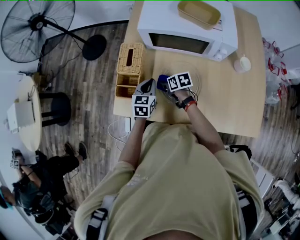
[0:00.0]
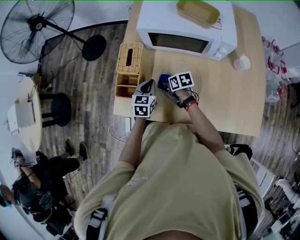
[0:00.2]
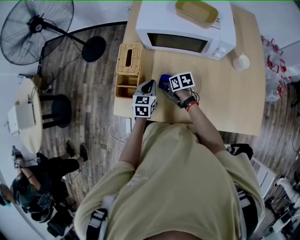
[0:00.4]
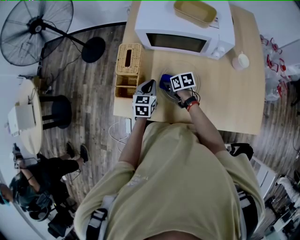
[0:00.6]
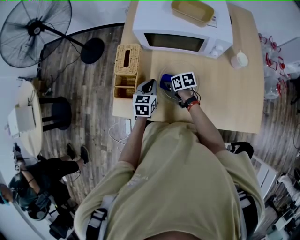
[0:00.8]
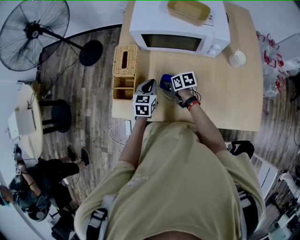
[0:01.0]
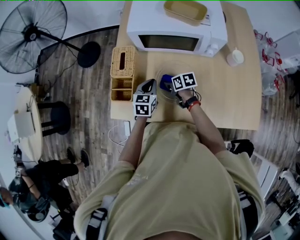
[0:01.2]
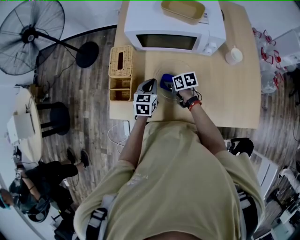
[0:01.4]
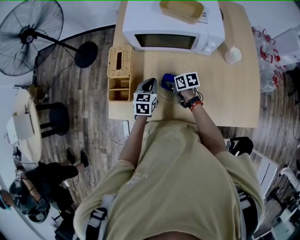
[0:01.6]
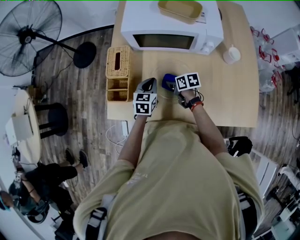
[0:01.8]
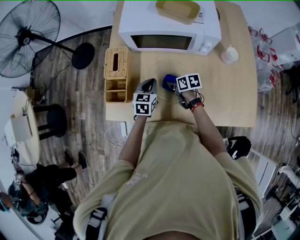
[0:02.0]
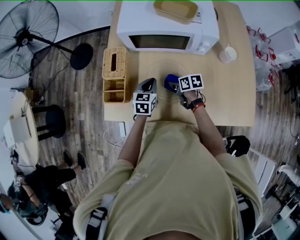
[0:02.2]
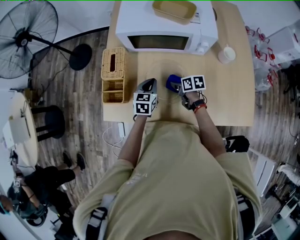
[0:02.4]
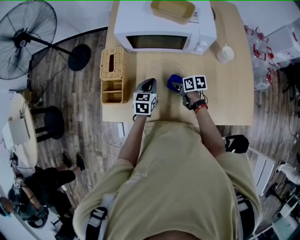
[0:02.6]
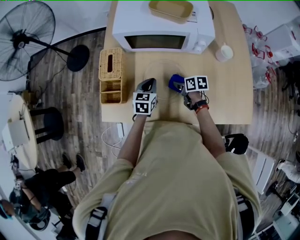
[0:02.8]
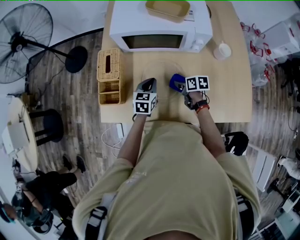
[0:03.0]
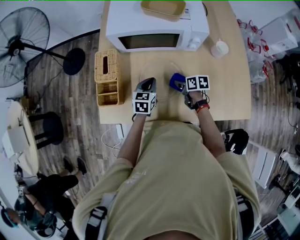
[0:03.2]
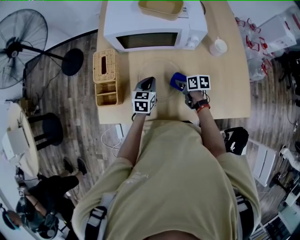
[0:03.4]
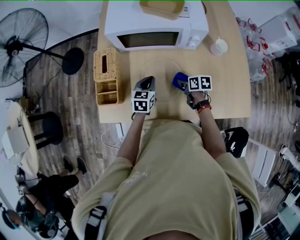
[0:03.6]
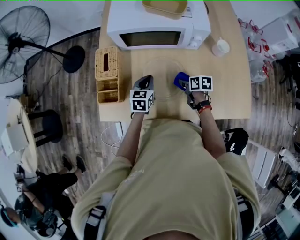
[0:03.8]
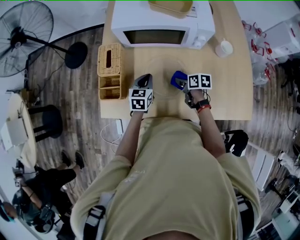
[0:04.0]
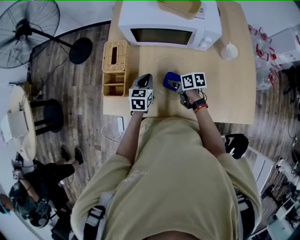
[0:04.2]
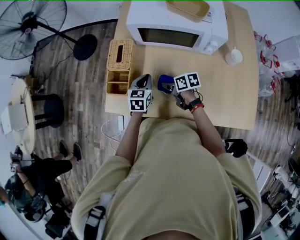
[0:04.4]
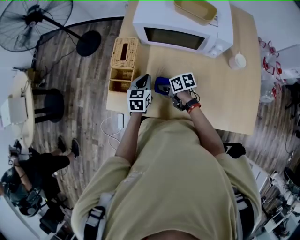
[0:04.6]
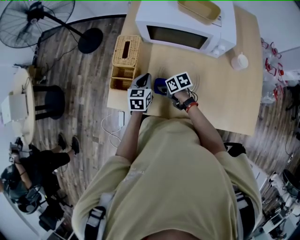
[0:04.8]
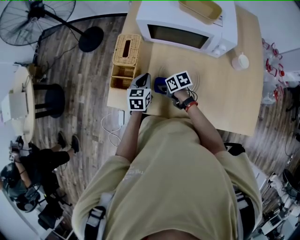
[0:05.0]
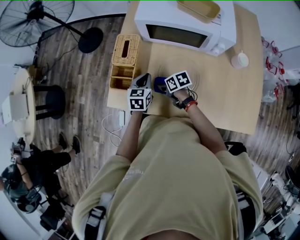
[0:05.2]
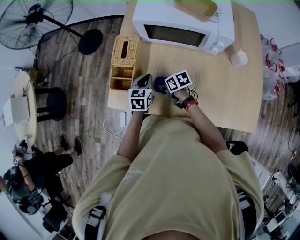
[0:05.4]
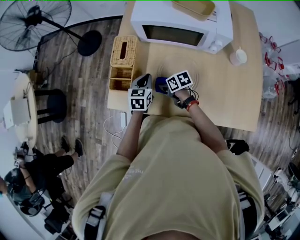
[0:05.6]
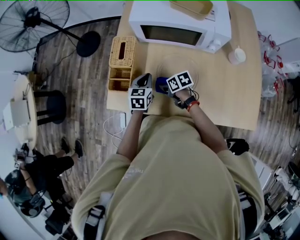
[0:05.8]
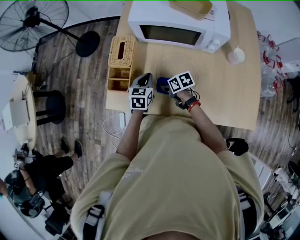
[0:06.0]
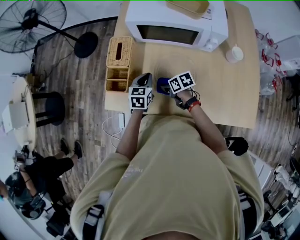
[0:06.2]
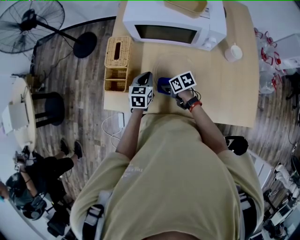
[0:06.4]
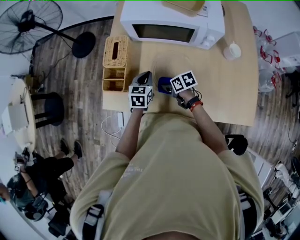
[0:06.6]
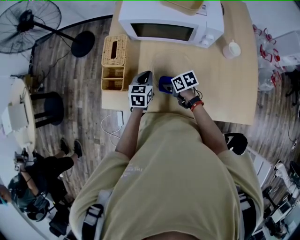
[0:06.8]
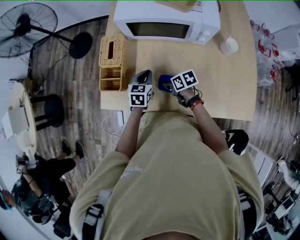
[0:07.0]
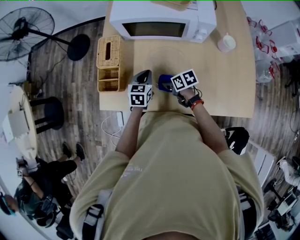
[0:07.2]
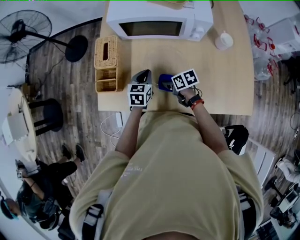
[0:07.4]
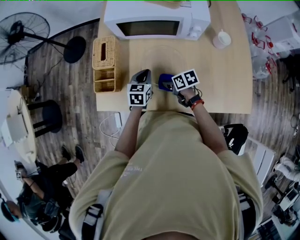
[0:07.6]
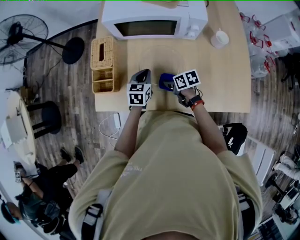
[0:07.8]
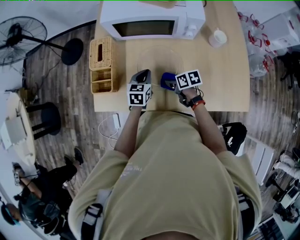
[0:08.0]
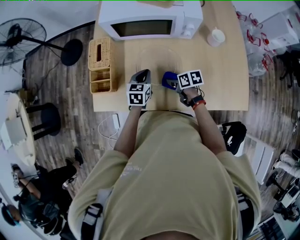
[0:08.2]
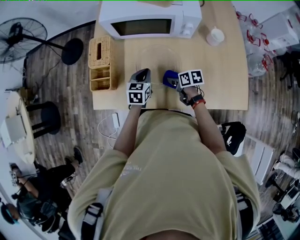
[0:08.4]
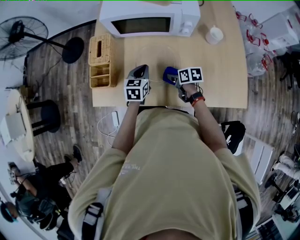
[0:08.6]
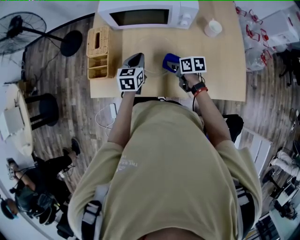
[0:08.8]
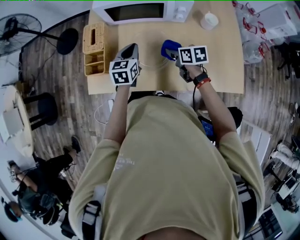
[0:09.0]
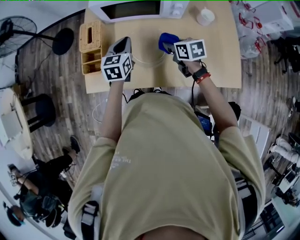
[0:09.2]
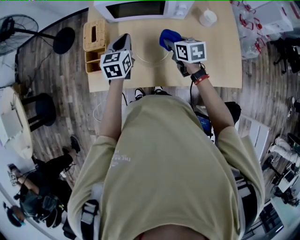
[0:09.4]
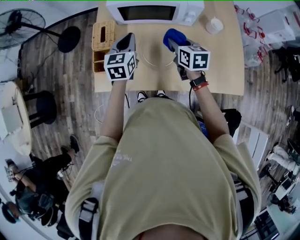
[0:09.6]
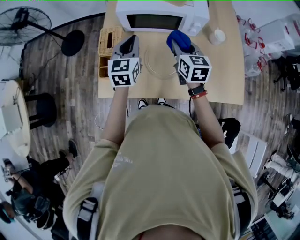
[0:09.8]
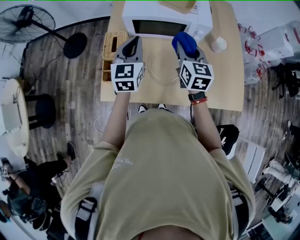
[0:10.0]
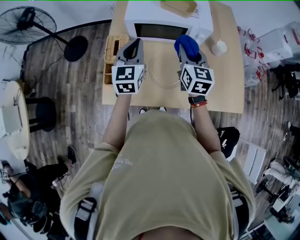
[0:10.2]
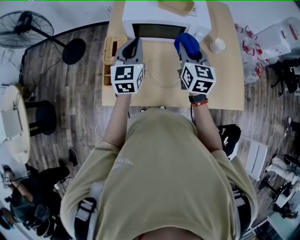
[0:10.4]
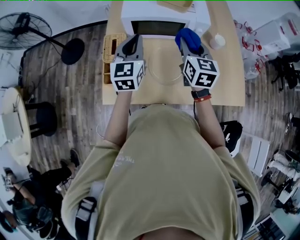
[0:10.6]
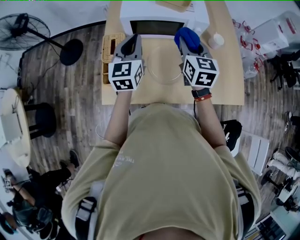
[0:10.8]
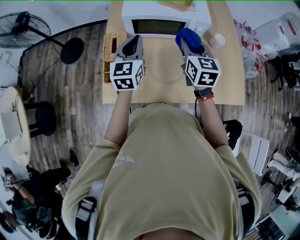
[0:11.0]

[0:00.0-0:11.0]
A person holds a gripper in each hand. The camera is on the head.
0:00.0 to 0:01.6: The grippers both shift to the right by some 5 cm.
0:01.6 to 0:03.2: The left gripper heads to the right, covering about 5 cm. The right gripper heads to the right, covering some 10 cm.
0:03.2 to 0:04.8: The left gripper changes place by roughly 10 cm; the right gripper changes place by about 20 cm, and changes its angle by approximately 30 degrees.
0:04.8 to 0:06.2: There are only small adjustments of the grippers.
0:06.2 to 0:07.8: The right gripper heads to the right and backward, covering some 10 cm, while the left gripper travels to the right by approximately 5 cm.
0:07.8 to 0:09.4: The two grippers go approximately 15 cm upward. The right gripper swivels approximately 30 degrees.
0:09.4 to 0:11.0: The right gripper moves upward, about 15 cm, and turns by some 30 degrees. Meanwhile the left gripper shifts some 15 cm upward and to the left.

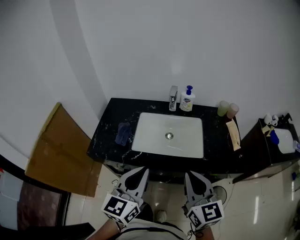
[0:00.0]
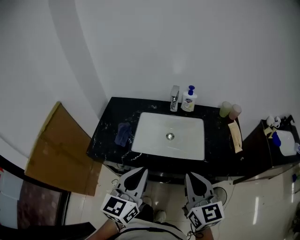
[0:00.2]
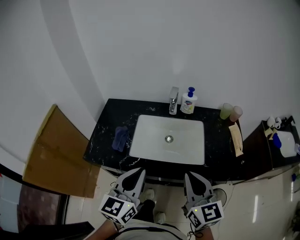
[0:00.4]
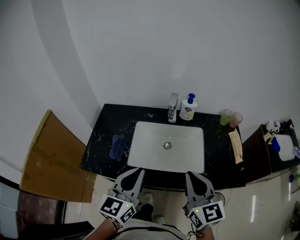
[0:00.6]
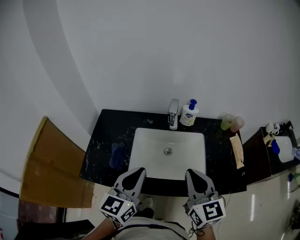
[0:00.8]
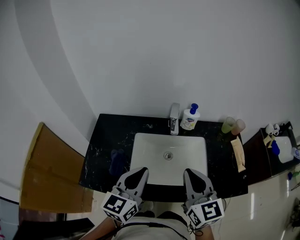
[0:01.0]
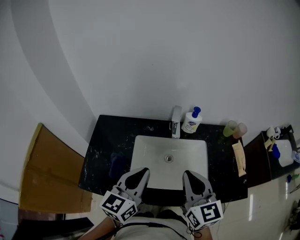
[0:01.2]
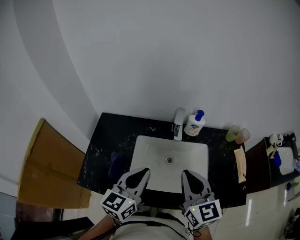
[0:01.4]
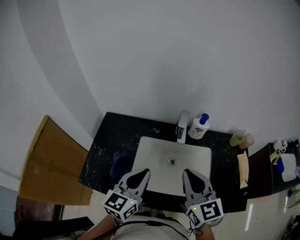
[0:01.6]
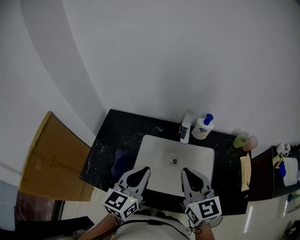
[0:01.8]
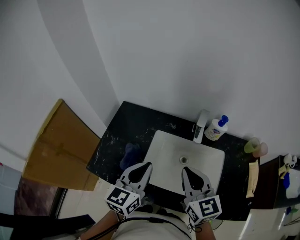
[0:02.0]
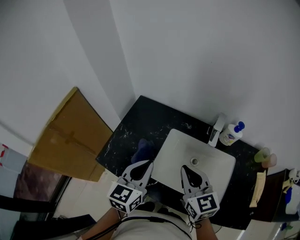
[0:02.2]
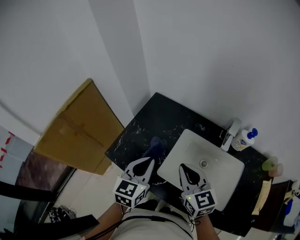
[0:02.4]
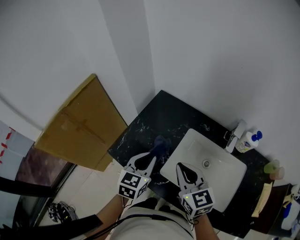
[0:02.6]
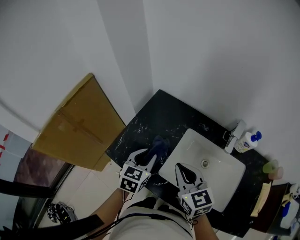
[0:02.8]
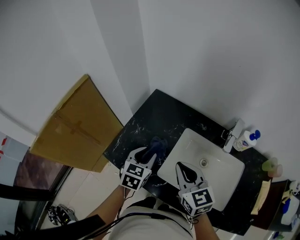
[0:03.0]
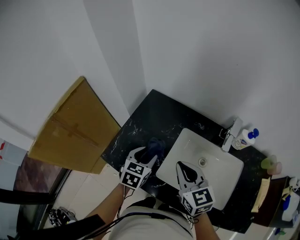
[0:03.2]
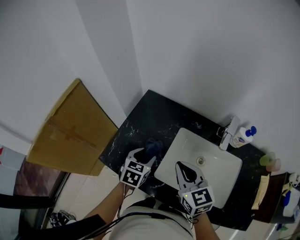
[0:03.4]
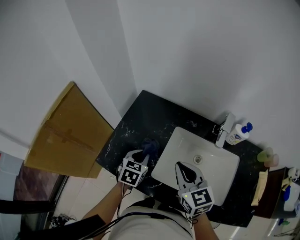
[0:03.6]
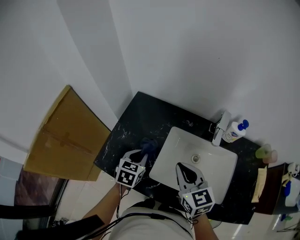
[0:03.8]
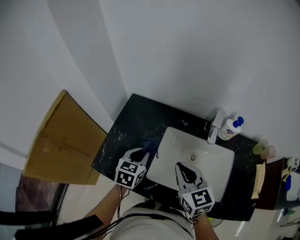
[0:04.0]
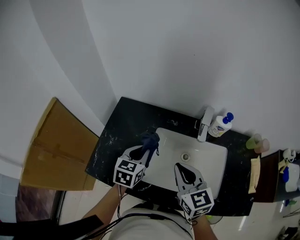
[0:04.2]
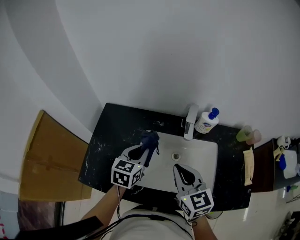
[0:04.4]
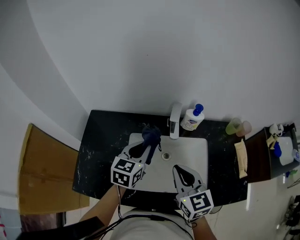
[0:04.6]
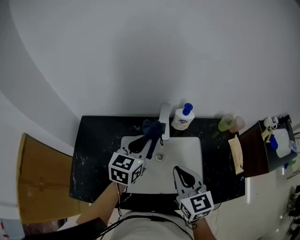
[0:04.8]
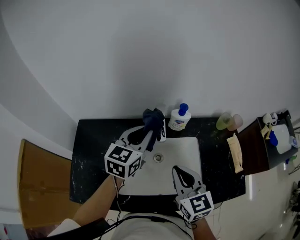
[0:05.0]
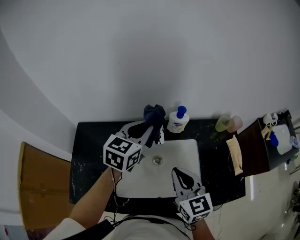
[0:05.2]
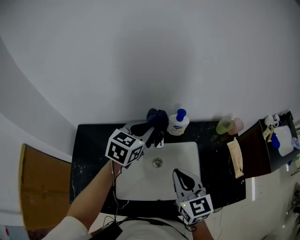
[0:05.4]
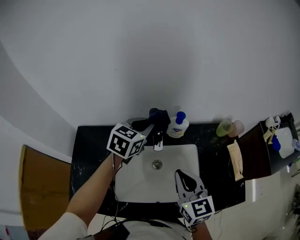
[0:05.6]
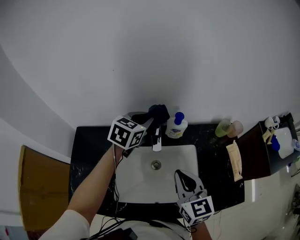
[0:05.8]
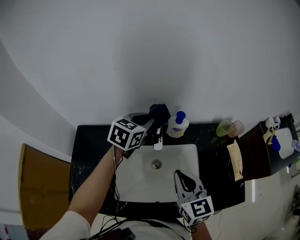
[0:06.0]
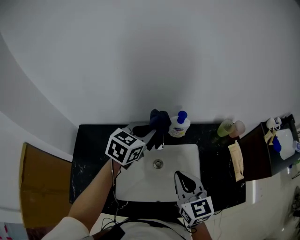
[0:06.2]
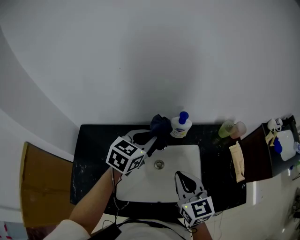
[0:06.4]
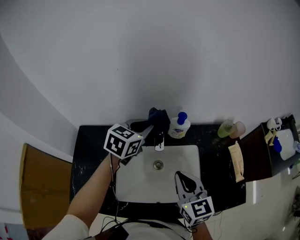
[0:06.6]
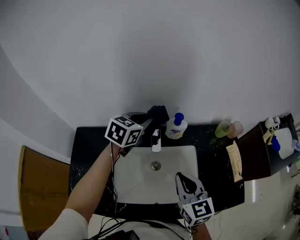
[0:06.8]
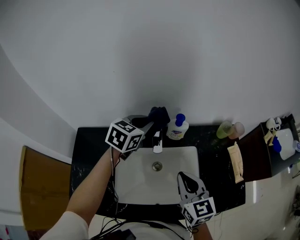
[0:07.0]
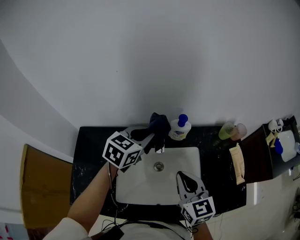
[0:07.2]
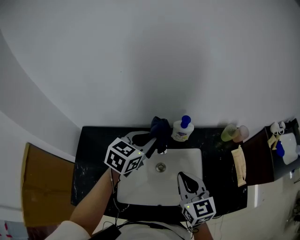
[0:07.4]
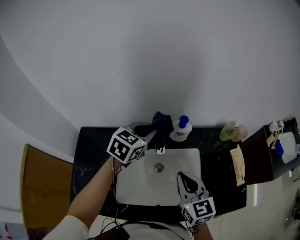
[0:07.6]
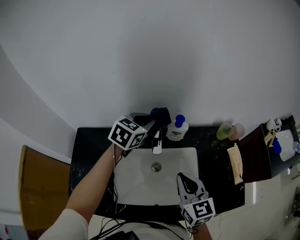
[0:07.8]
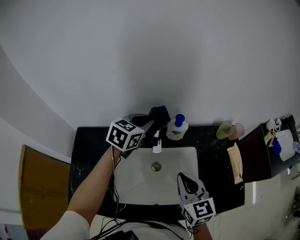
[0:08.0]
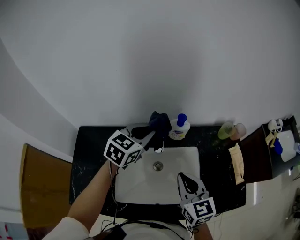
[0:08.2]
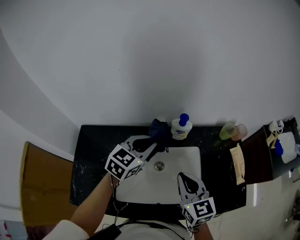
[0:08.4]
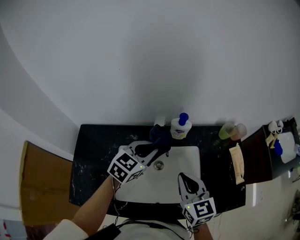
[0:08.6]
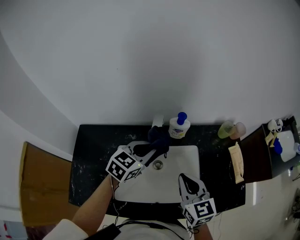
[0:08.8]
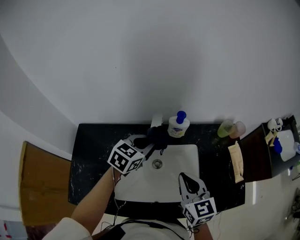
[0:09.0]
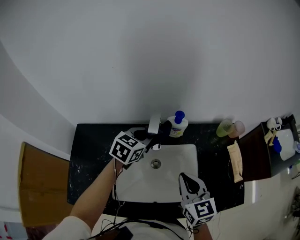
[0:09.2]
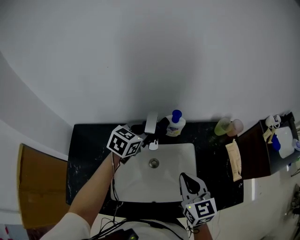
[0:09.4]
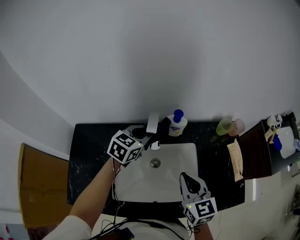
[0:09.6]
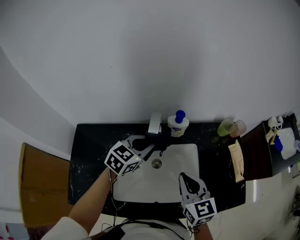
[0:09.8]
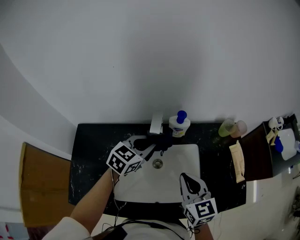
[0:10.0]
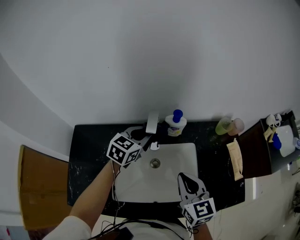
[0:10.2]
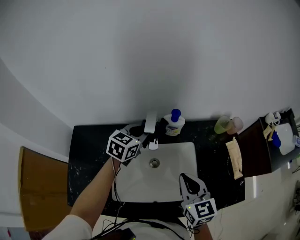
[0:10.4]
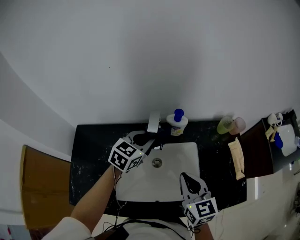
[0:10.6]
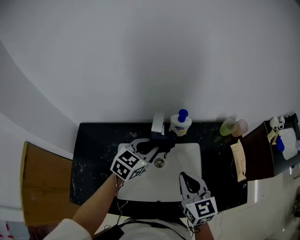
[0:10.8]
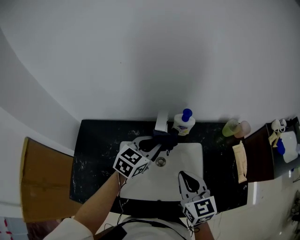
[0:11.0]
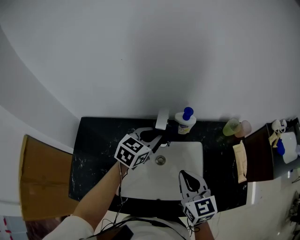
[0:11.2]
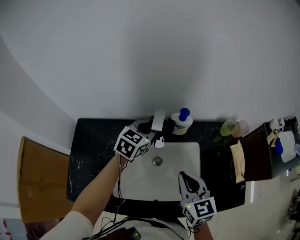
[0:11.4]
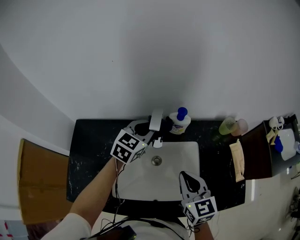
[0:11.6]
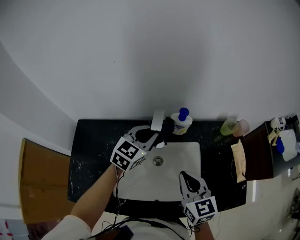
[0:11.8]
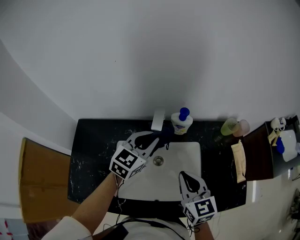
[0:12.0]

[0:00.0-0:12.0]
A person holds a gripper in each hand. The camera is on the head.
0:00.0 to 0:01.6: Both grippers move forward, roughly 25 cm.
0:01.6 to 0:03.0: The left gripper shifts by some 25 cm, rotates some 40 degrees, and opens, while the right gripper changes place by some 20 cm, and changes its angle by approximately 30 degrees.
0:03.0 to 0:04.4: Both grippers travel together to the right, about 15 cm. The right gripper changes its angle by approximately 20 degrees.
0:04.4 to 0:06.0: The right gripper shifts roughly 10 cm to the right. Meanwhile the left gripper heads forward, to the right and upward, covering roughly 25 cm, and rotates some 30 degrees.
0:06.0 to 0:07.6: The left gripper goes forward and backward, about 10 cm each way, reversing 2 times.
0:07.6 to 0:09.0: The left gripper travels downward by roughly 5 cm.
0:09.0 to 0:10.4: The left gripper swings forward and backward, roughly 5 cm each way, with 2 reversals.
0:10.4 to 0:12.0: The left gripper moves forward and backward over roughly 5 cm, changing direction 2 times.

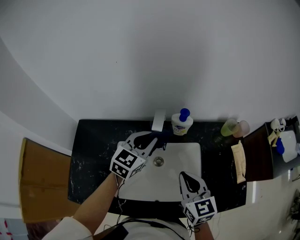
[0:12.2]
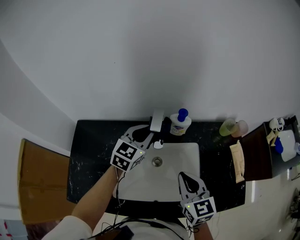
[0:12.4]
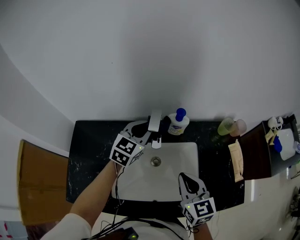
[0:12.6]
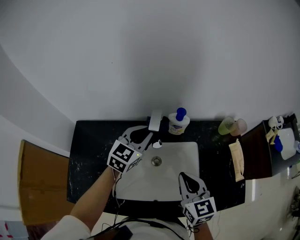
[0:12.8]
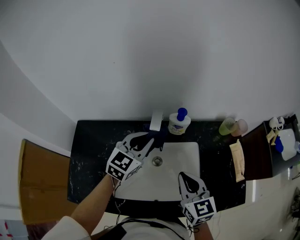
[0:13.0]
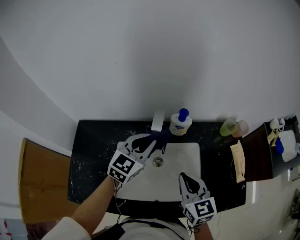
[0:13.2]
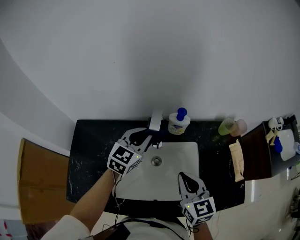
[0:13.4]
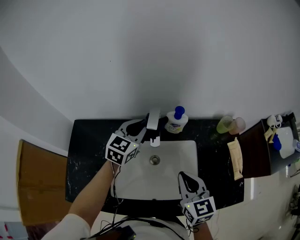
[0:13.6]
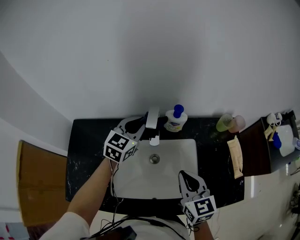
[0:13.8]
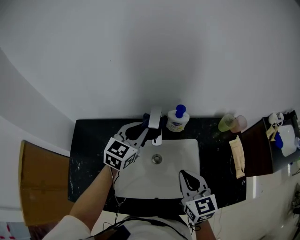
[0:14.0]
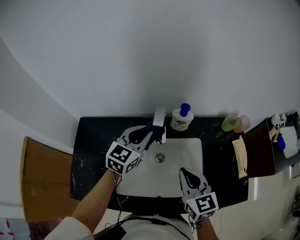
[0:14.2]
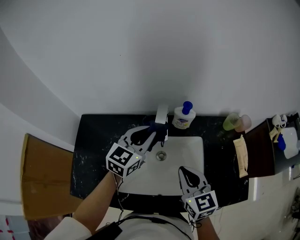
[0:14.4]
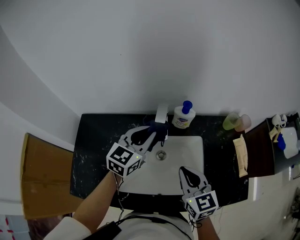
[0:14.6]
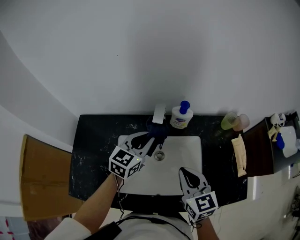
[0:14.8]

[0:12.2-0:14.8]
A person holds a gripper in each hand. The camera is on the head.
0:12.2 to 0:14.8: The grippers move only a little.
